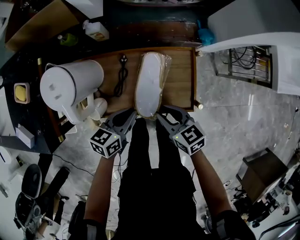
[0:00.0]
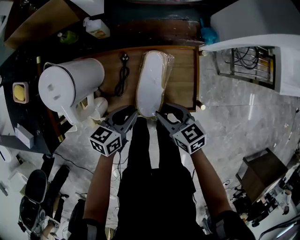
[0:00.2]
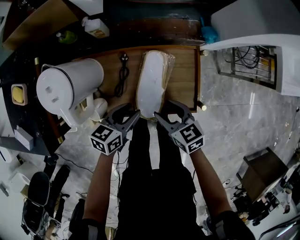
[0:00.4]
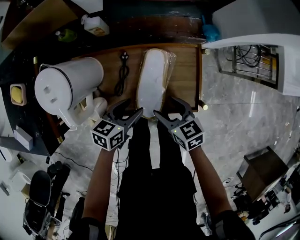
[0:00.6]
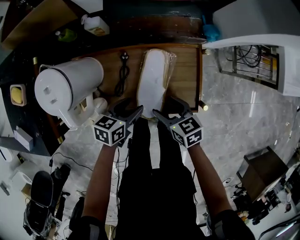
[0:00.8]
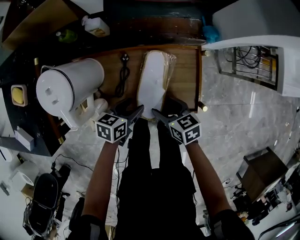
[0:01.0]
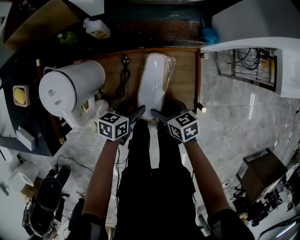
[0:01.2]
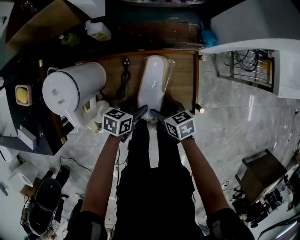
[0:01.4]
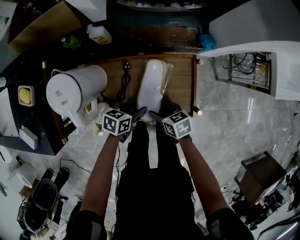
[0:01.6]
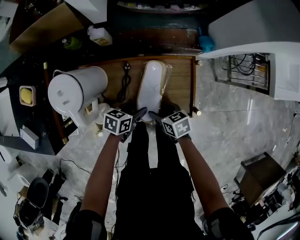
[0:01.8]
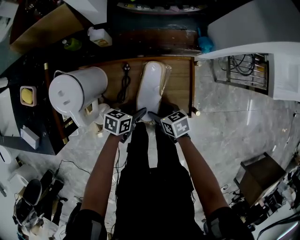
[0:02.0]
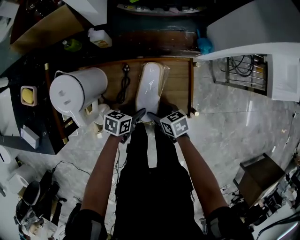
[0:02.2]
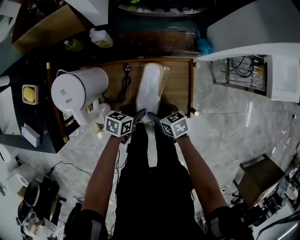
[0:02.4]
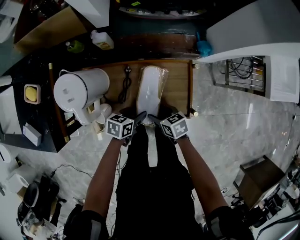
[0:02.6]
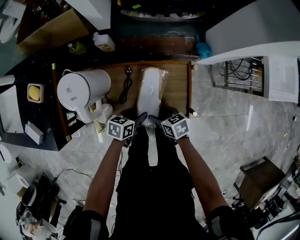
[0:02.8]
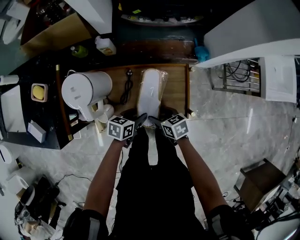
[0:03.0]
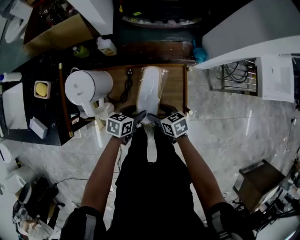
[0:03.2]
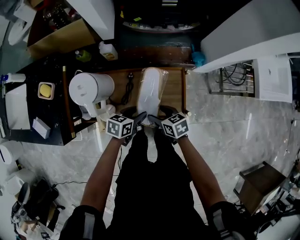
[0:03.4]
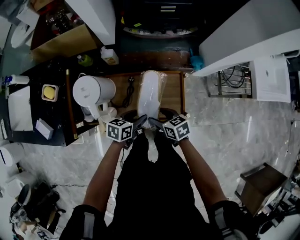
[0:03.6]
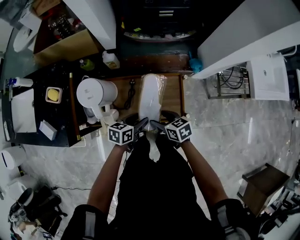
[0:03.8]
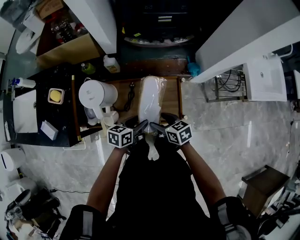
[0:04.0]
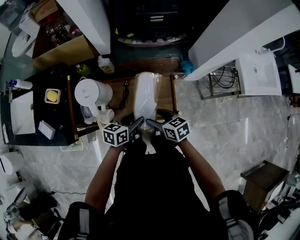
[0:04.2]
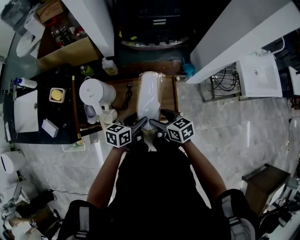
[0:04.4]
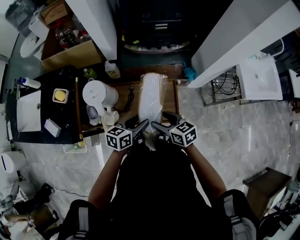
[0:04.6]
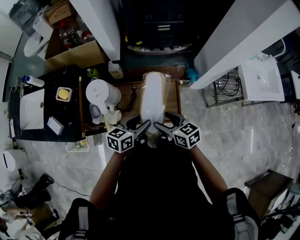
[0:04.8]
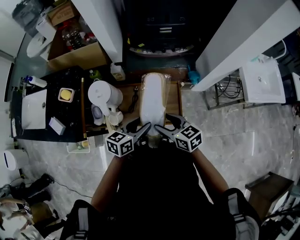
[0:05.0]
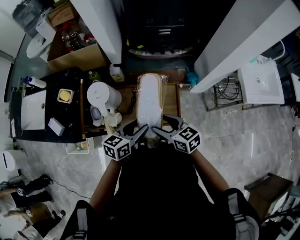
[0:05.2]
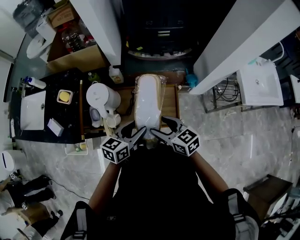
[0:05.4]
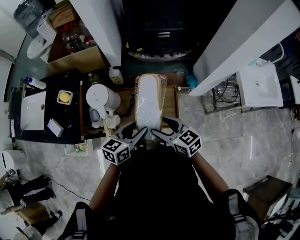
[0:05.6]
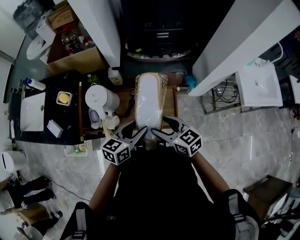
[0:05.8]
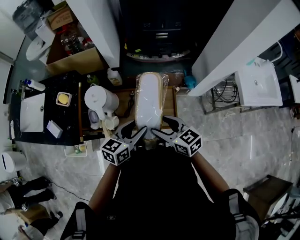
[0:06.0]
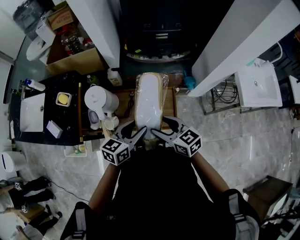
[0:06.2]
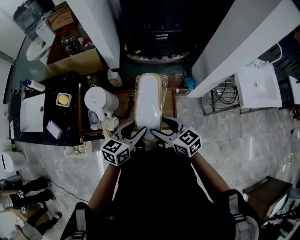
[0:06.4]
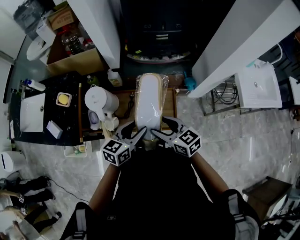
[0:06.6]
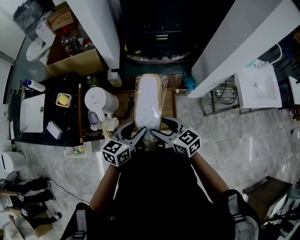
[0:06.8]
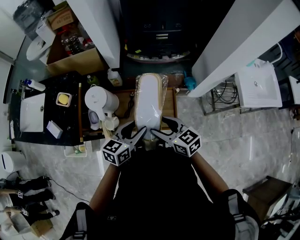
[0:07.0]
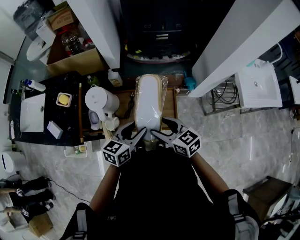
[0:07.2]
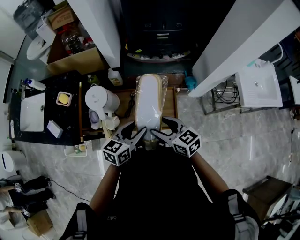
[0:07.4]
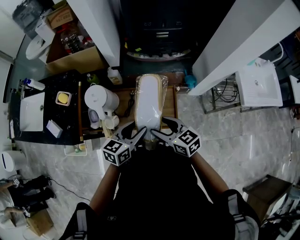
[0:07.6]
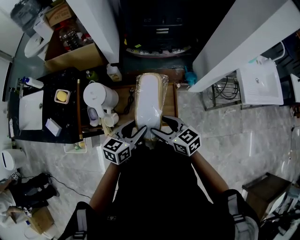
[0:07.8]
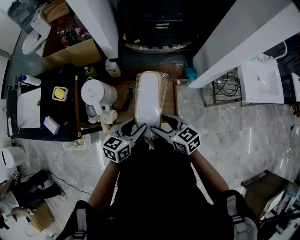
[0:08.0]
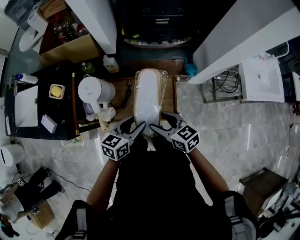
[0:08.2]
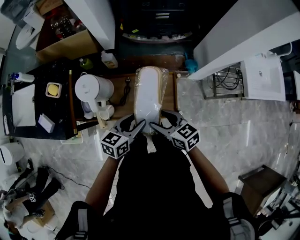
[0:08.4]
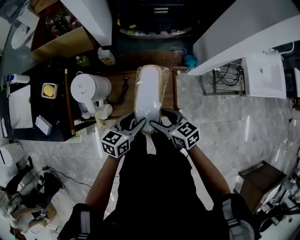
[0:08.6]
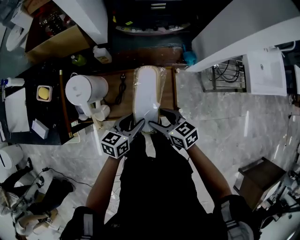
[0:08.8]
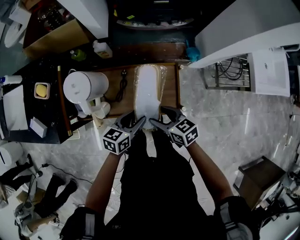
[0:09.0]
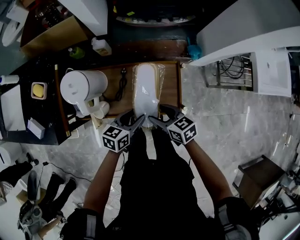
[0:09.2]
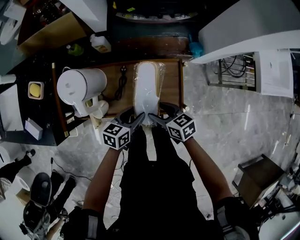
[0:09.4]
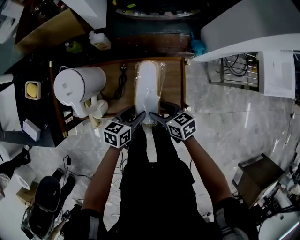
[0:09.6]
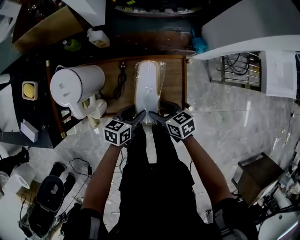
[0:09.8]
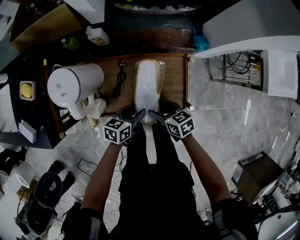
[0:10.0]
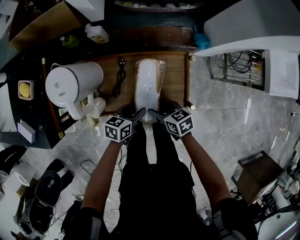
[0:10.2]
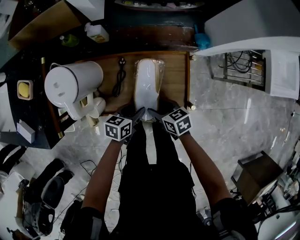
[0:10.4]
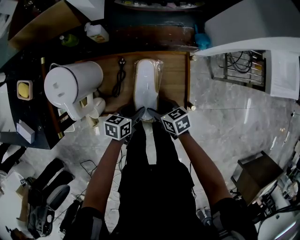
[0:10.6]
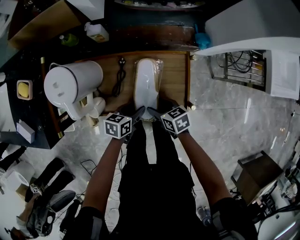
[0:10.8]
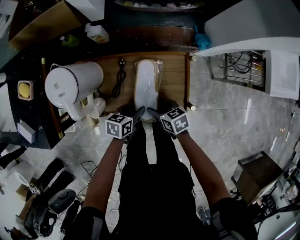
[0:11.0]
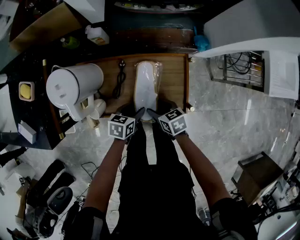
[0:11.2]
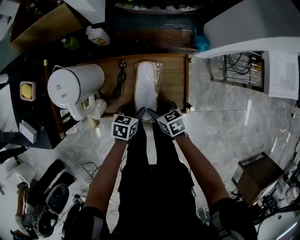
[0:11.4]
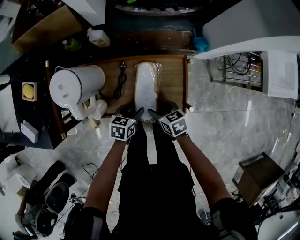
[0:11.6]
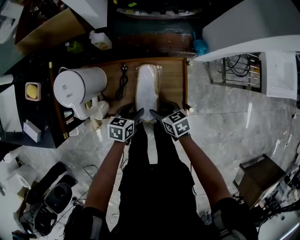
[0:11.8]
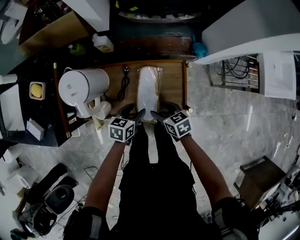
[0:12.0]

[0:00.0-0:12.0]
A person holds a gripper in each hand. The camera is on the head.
0.0 to 1.6 s: Both grippers travel together downward, approximately 10 cm. The left gripper opens up; the right gripper opens its fingers.
1.6 to 3.0 s: The grippers stay close to where they were, moving slightly.
3.0 to 4.4 s: The two grippers go approximately 15 cm upward.
4.4 to 6.0 s: The grippers both shift upward by about 10 cm.
6.0 to 7.6 s: Both grippers stay put.
7.6 to 9.0 s: Both grippers move downward, approximately 15 cm.
9.0 to 10.4 s: Both grippers travel together downward, approximately 15 cm.
10.4 to 12.0 s: The grippers stay close to where they were, moving slightly.

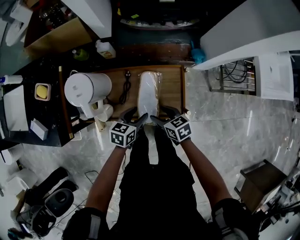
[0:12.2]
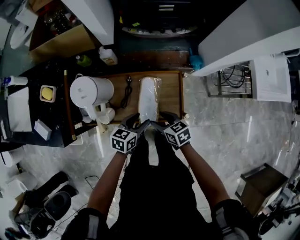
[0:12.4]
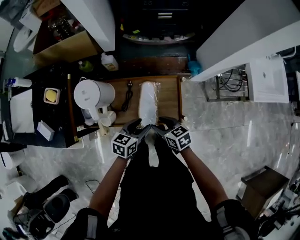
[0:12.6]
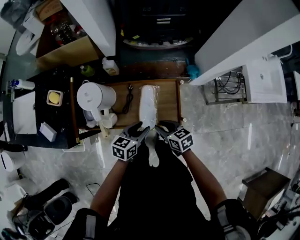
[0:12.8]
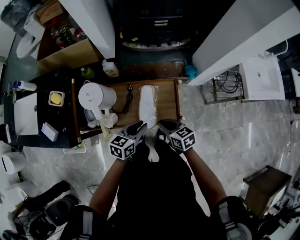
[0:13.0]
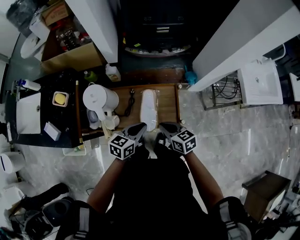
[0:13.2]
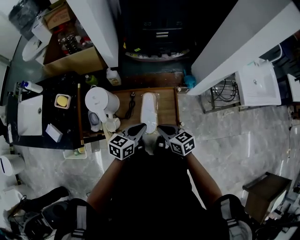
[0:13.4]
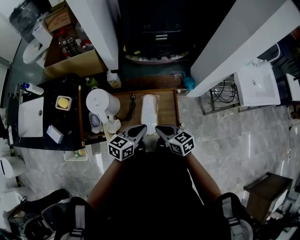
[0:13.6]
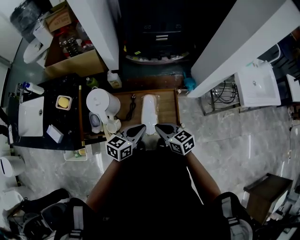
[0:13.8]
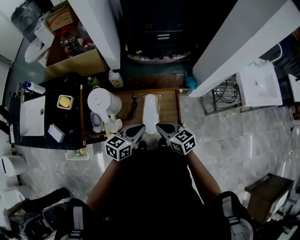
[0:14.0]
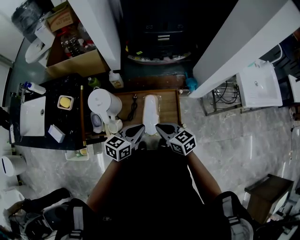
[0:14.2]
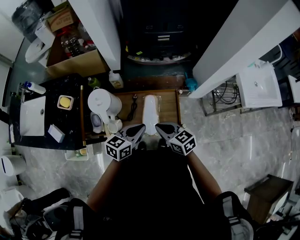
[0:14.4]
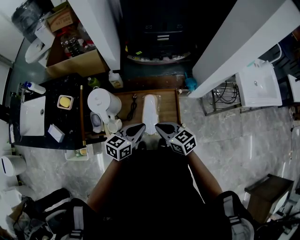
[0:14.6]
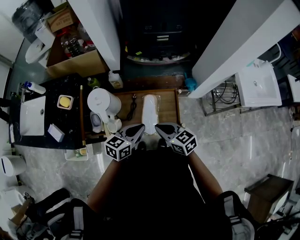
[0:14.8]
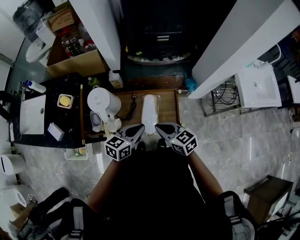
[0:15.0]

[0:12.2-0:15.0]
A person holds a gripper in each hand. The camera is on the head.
12.2 to 13.6 s: Both grippers move upward, about 15 cm. The left gripper closes up; the right gripper closes up.
13.6 to 15.0 s: There are only small adjustments of the grippers.

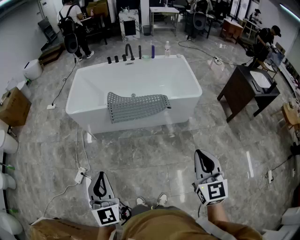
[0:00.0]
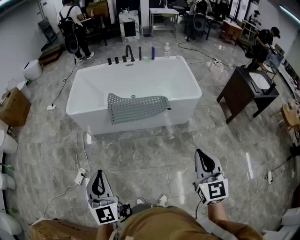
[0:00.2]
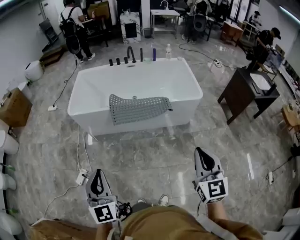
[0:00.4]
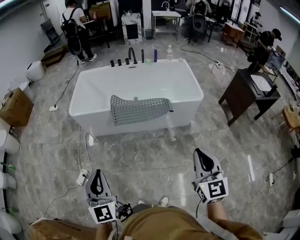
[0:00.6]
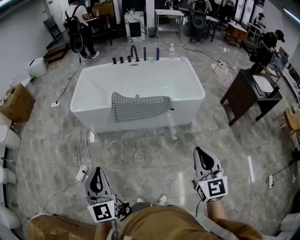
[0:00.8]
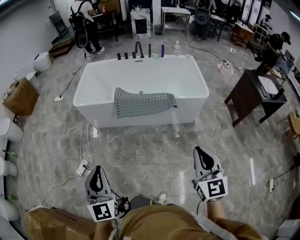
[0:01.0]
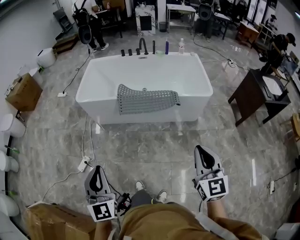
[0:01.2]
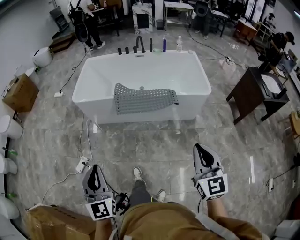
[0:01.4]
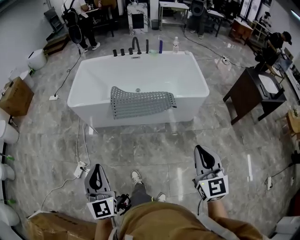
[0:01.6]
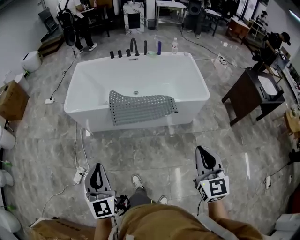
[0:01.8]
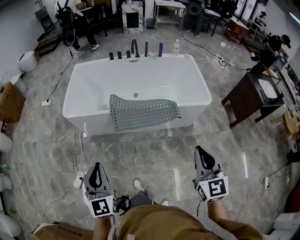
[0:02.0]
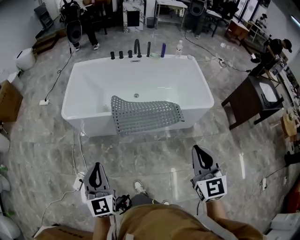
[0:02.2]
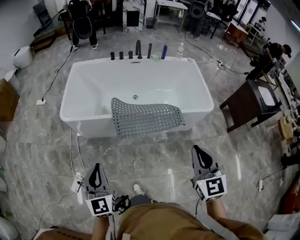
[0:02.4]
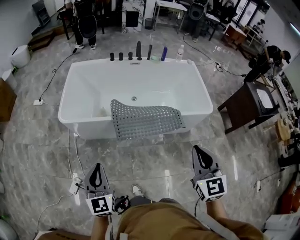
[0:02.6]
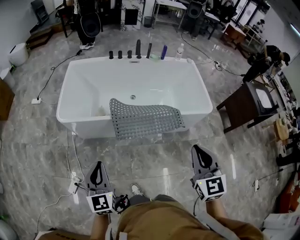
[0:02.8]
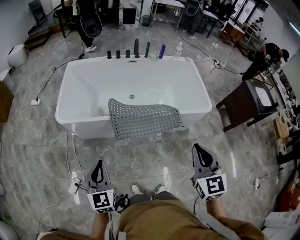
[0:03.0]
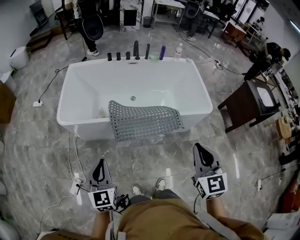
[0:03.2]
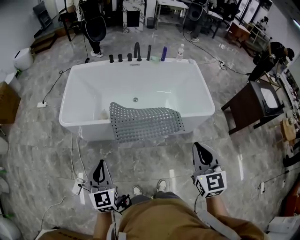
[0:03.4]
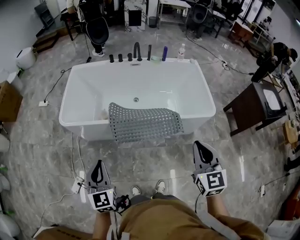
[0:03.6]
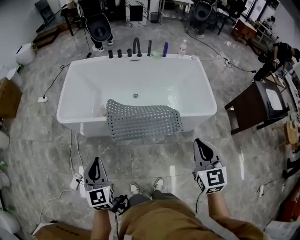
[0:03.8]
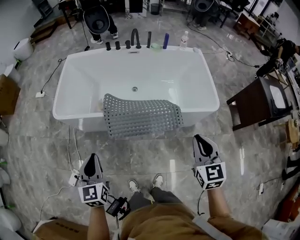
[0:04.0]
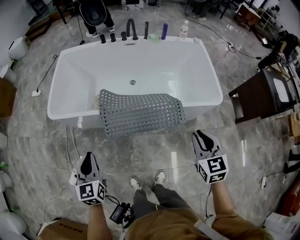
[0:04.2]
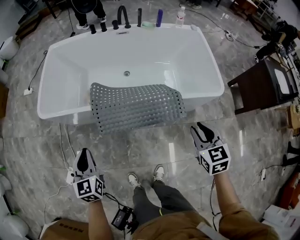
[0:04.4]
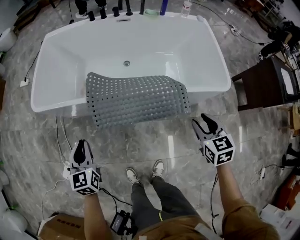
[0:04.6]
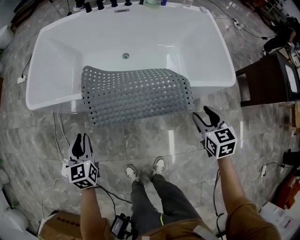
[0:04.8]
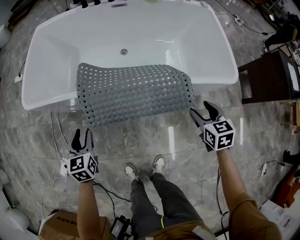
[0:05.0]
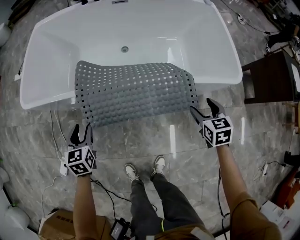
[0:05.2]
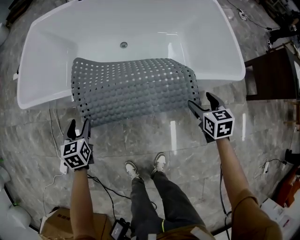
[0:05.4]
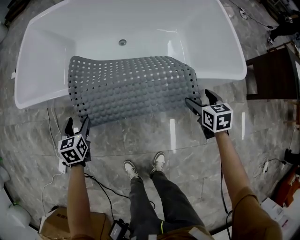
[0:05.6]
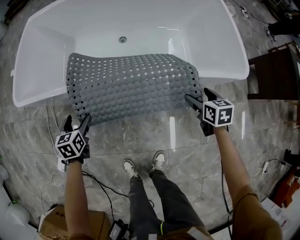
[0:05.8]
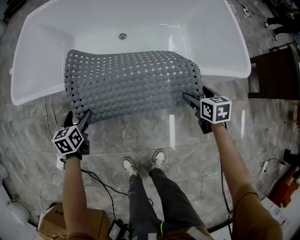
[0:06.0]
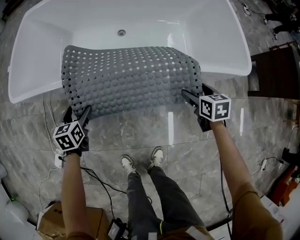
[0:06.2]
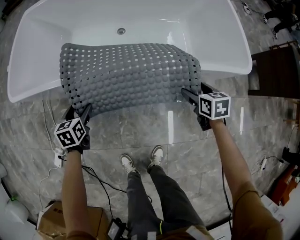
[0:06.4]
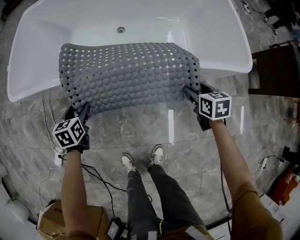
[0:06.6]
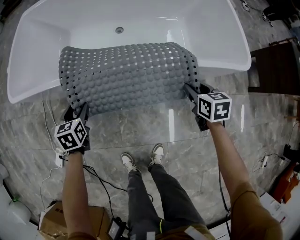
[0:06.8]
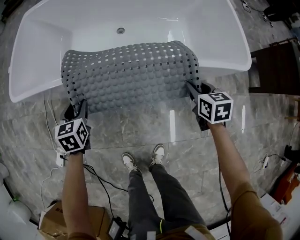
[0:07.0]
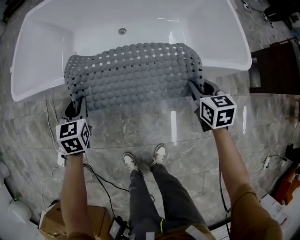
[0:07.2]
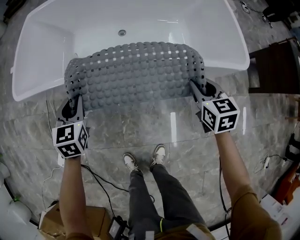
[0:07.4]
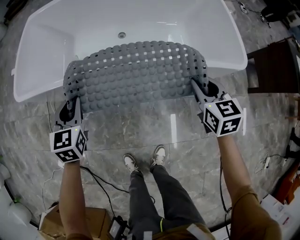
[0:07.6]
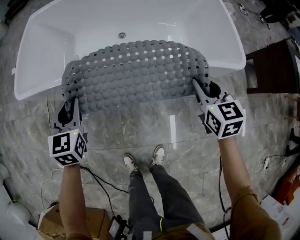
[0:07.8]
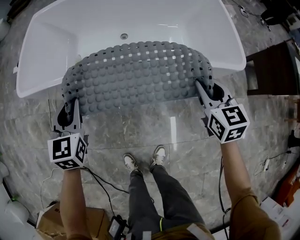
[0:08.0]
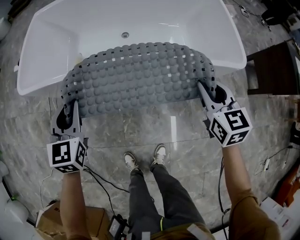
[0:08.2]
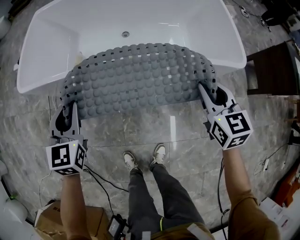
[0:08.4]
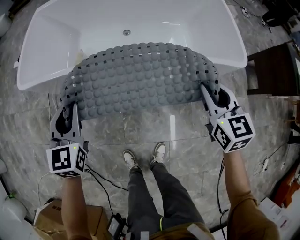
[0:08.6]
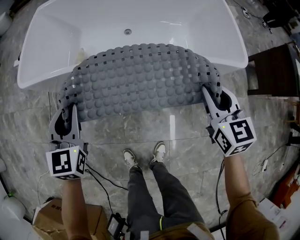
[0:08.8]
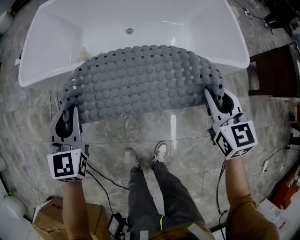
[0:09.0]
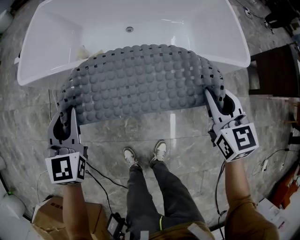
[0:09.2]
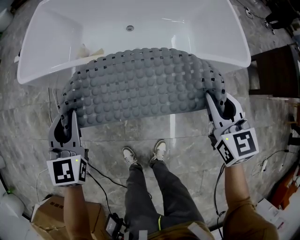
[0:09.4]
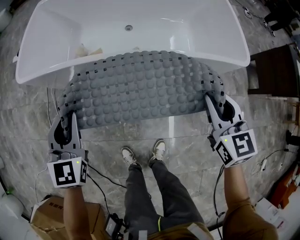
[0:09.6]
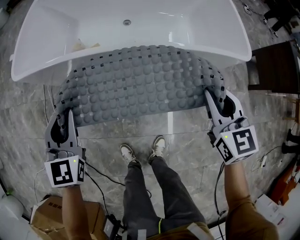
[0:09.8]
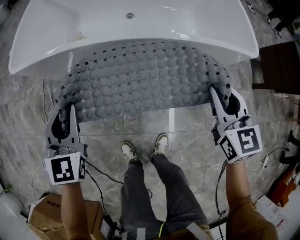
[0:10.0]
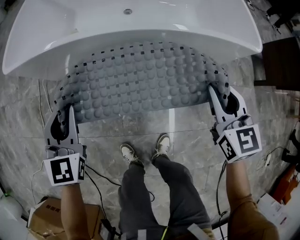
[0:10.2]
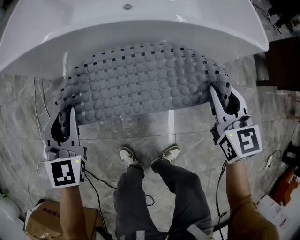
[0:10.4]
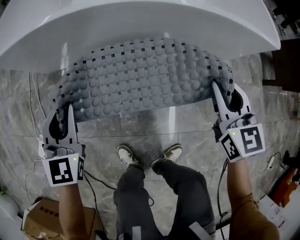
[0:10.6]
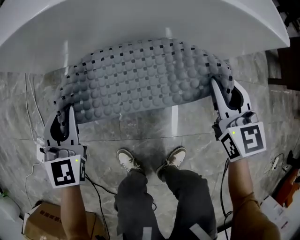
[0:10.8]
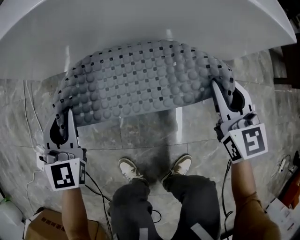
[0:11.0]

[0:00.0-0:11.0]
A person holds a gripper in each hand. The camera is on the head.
0.0 to 1.6 s: The left gripper changes place by roughly 5 cm. The right gripper goes about 5 cm forward.
1.6 to 3.2 s: The right gripper heads forward and to the left, covering about 25 cm. Meanwhile the left gripper is displaced forward by roughly 25 cm.
3.2 to 4.8 s: The left gripper travels downward and forward by roughly 30 cm; the right gripper shifts roughly 40 cm downward, forward and to the right, swivels approximately 30 degrees, and opens.
4.8 to 6.2 s: The right gripper travels downward by approximately 20 cm, and opens up. Meanwhile the left gripper heads downward and forward, covering about 20 cm, and opens.
6.2 to 7.8 s: Both grippers move upward, some 15 cm. The left gripper swivels some 30 degrees, and closes its fingers, while the right gripper swivels about 20 degrees, and closes up.
7.8 to 9.4 s: Both grippers travel together upward, roughly 5 cm.
9.4 to 11.0 s: The grippers make only small movements.
